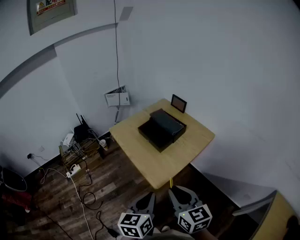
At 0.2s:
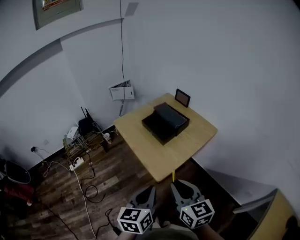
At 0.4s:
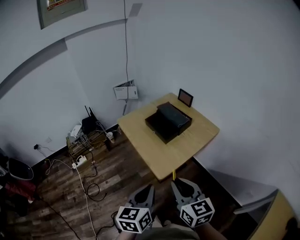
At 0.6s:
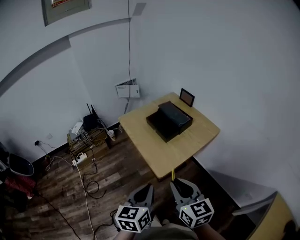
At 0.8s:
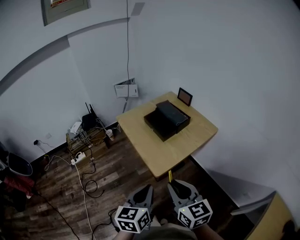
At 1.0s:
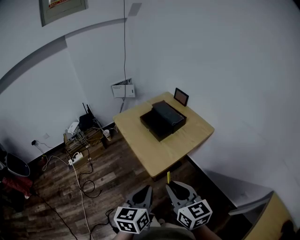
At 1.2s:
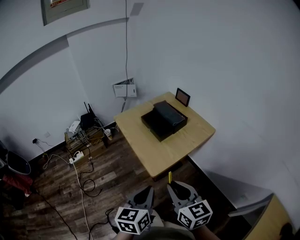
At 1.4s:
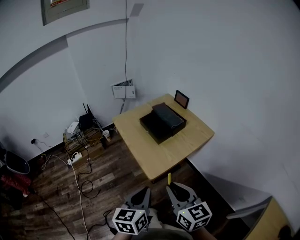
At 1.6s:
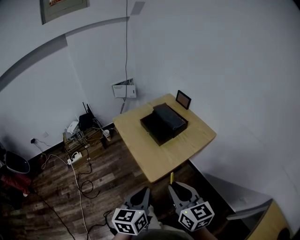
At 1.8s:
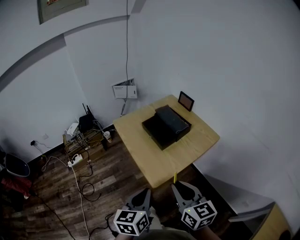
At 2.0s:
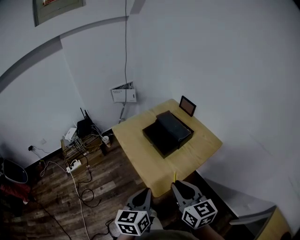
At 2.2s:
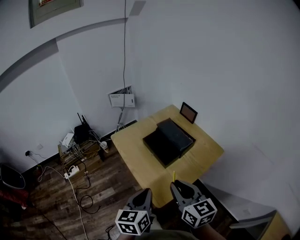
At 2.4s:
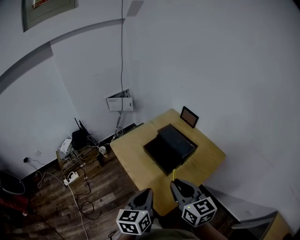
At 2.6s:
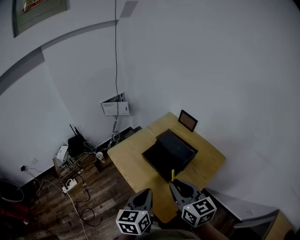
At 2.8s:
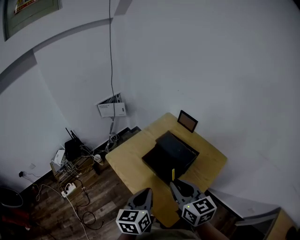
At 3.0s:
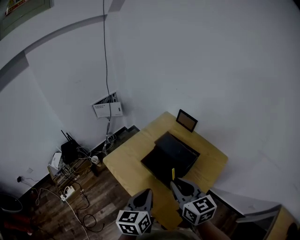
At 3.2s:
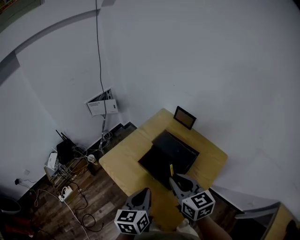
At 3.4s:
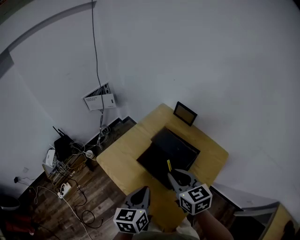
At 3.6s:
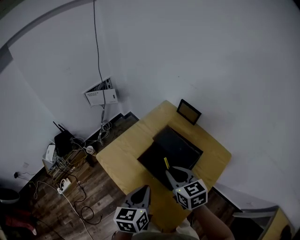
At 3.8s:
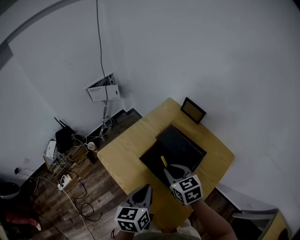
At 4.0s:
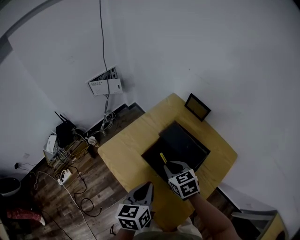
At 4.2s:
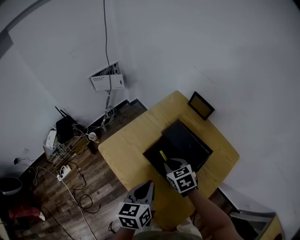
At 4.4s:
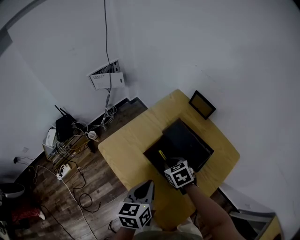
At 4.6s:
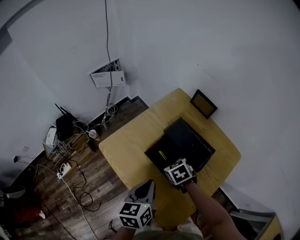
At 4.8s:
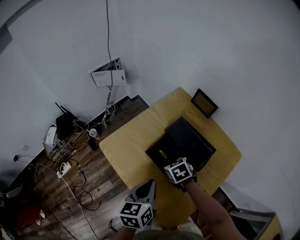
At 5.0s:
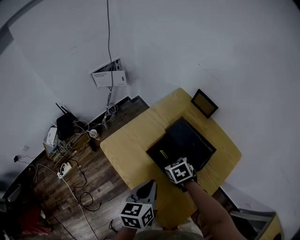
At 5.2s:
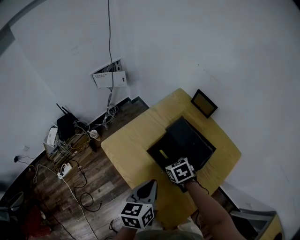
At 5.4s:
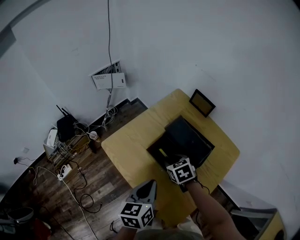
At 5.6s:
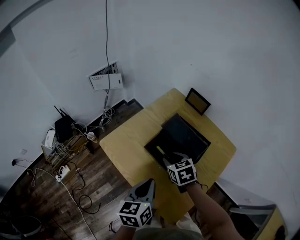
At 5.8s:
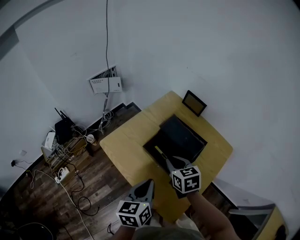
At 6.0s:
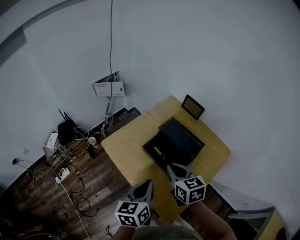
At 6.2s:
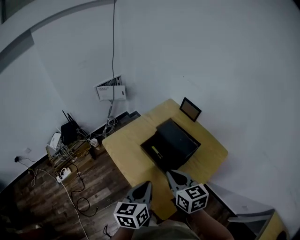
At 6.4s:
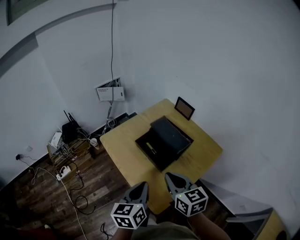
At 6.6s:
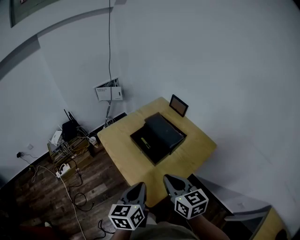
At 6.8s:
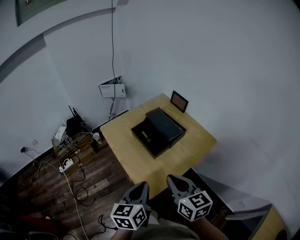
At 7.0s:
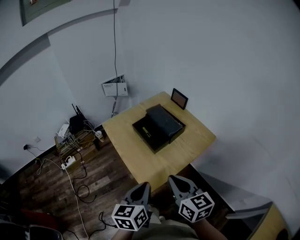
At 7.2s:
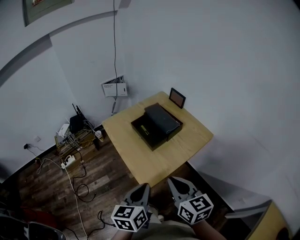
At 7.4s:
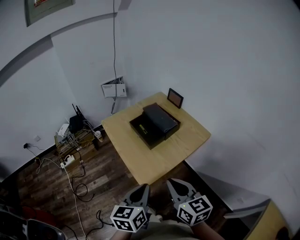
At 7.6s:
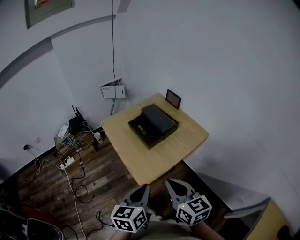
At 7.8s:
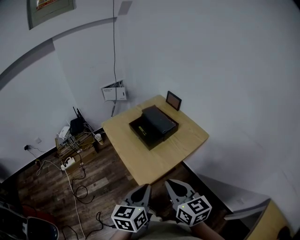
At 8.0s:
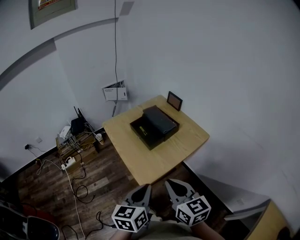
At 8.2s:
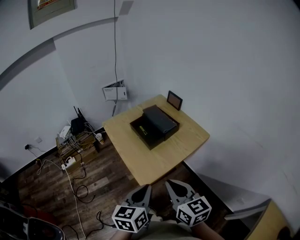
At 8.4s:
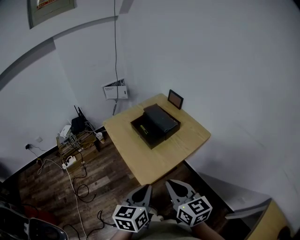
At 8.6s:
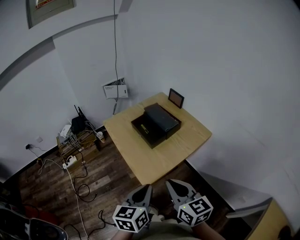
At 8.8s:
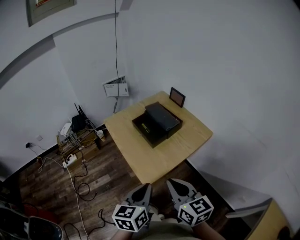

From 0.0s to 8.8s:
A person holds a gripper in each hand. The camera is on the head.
From 0.0s to 1.4s: There are only small adjustments of the grippers.
From 1.4s to 3.0s: Both grippers travel together forward, approximately 35 cm.
From 3.0s to 4.4s: The right gripper heads downward and forward, covering about 25 cm, and tilts its fingers approximately 40 degrees downward; the left gripper heads downward and forward, covering some 10 cm.
From 4.4s to 5.8s: The right gripper goes some 10 cm upward, swivels about 20 degrees, and opens, then closes once more, while the left gripper changes place by approximately 5 cm.
From 5.8s to 7.4s: The grippers both shift backward by roughly 30 cm. The right gripper rotates some 30 degrees.
From 7.4s to 8.8s: There are only small adjustments of the grippers.

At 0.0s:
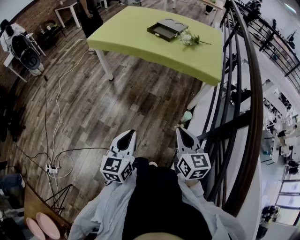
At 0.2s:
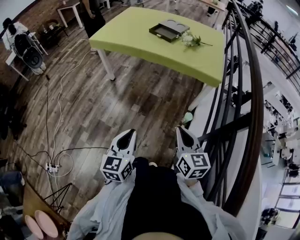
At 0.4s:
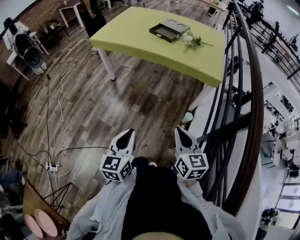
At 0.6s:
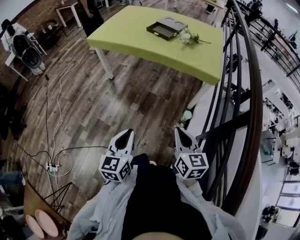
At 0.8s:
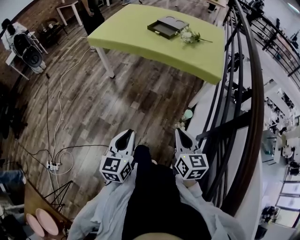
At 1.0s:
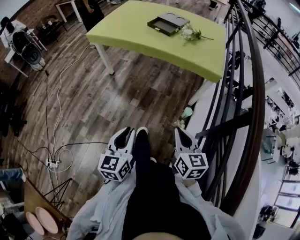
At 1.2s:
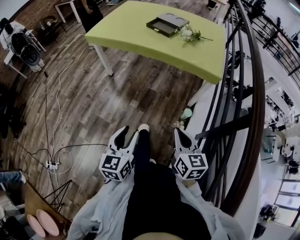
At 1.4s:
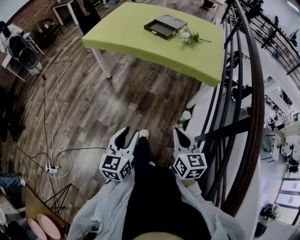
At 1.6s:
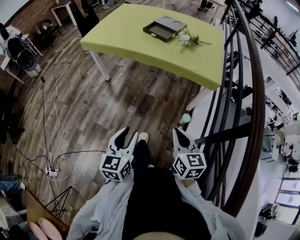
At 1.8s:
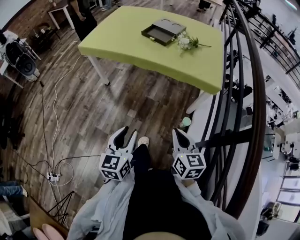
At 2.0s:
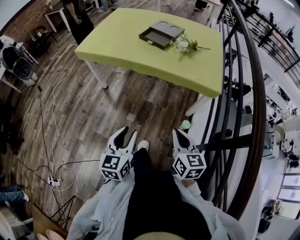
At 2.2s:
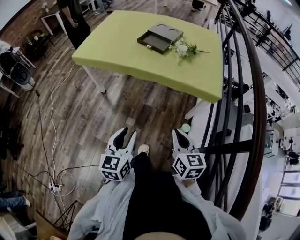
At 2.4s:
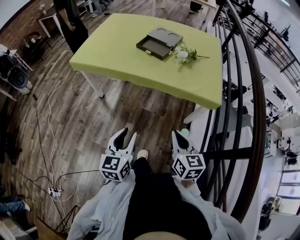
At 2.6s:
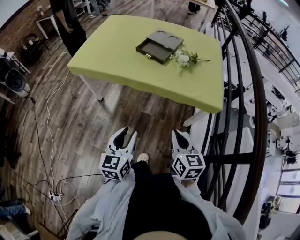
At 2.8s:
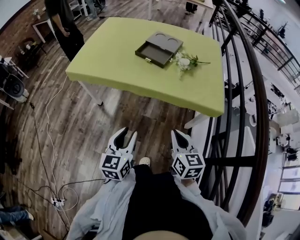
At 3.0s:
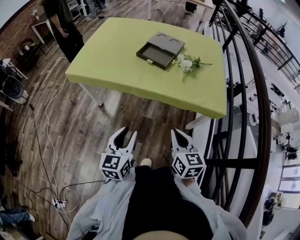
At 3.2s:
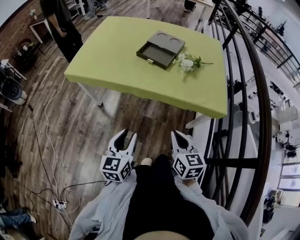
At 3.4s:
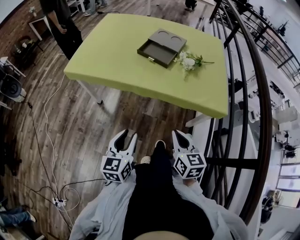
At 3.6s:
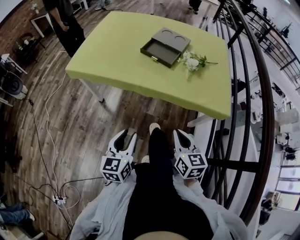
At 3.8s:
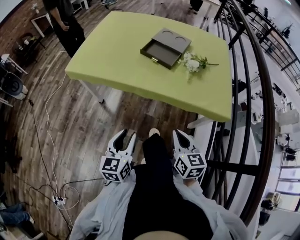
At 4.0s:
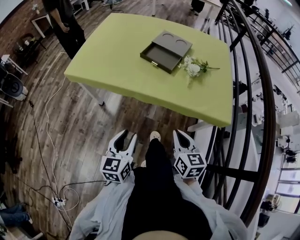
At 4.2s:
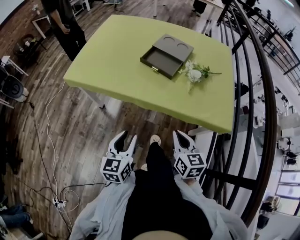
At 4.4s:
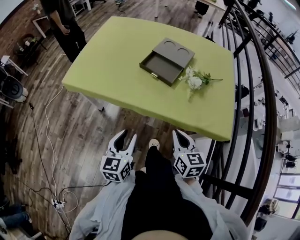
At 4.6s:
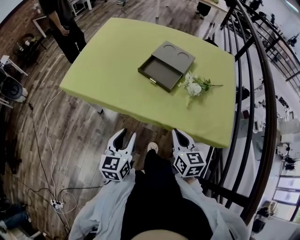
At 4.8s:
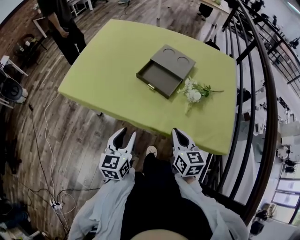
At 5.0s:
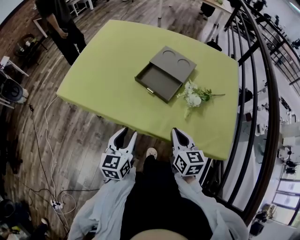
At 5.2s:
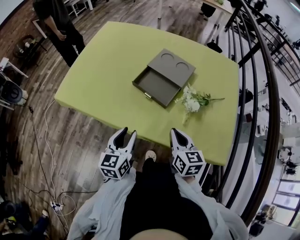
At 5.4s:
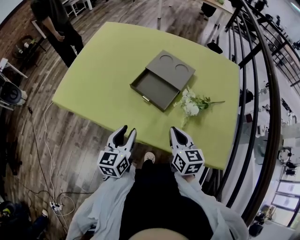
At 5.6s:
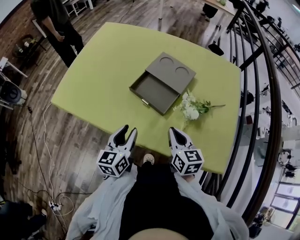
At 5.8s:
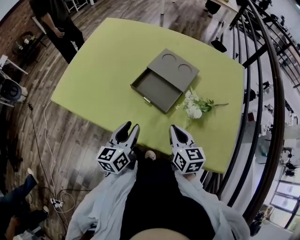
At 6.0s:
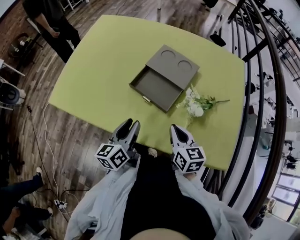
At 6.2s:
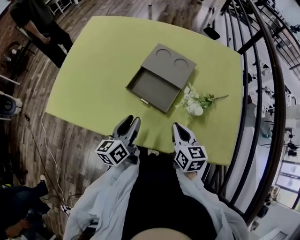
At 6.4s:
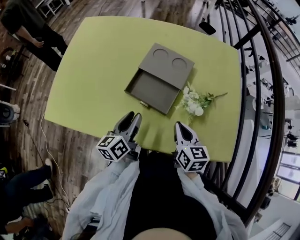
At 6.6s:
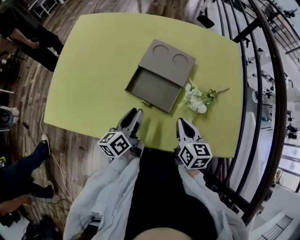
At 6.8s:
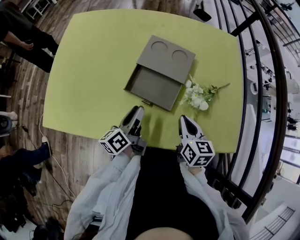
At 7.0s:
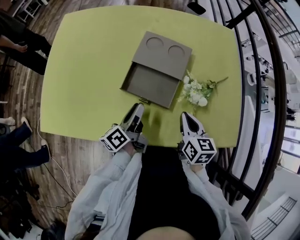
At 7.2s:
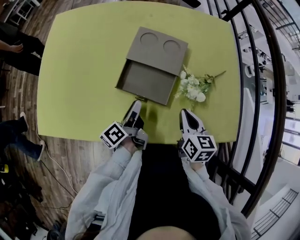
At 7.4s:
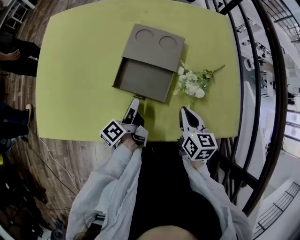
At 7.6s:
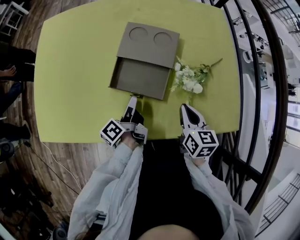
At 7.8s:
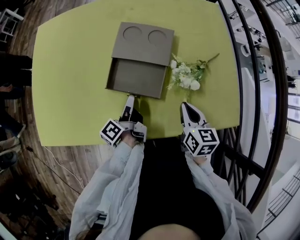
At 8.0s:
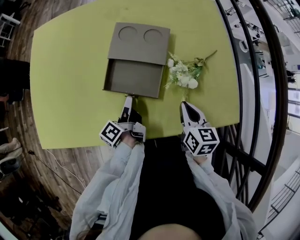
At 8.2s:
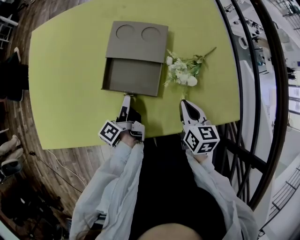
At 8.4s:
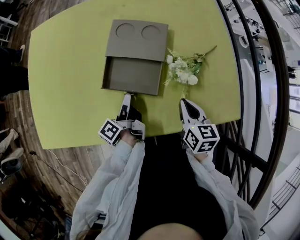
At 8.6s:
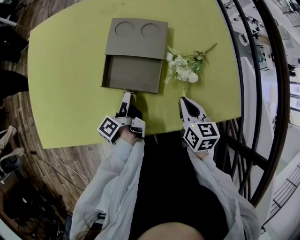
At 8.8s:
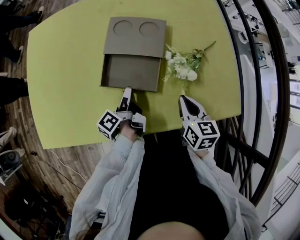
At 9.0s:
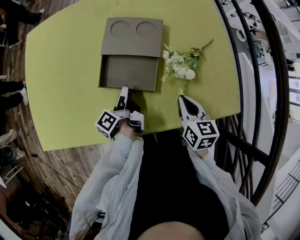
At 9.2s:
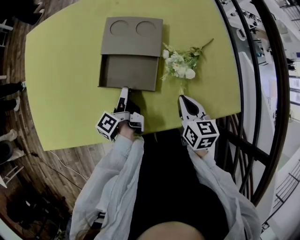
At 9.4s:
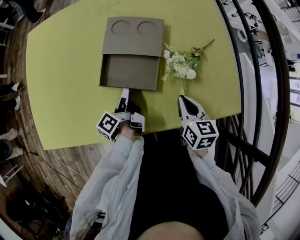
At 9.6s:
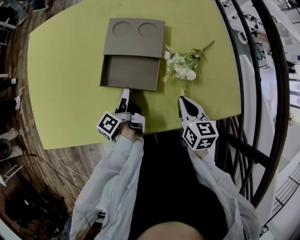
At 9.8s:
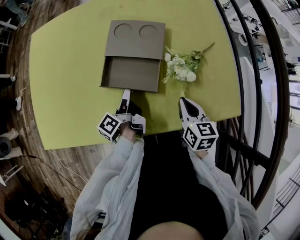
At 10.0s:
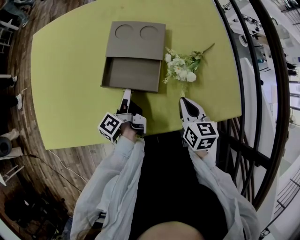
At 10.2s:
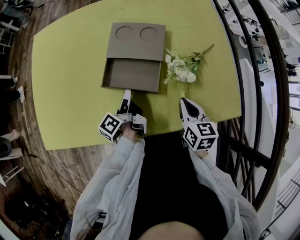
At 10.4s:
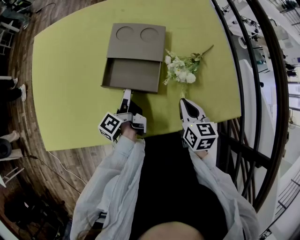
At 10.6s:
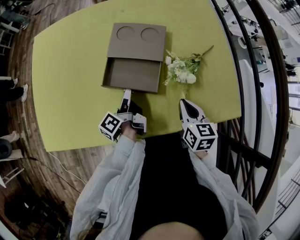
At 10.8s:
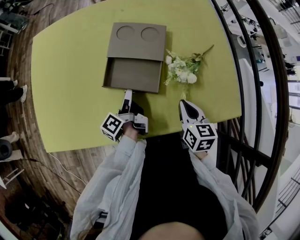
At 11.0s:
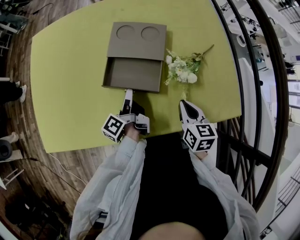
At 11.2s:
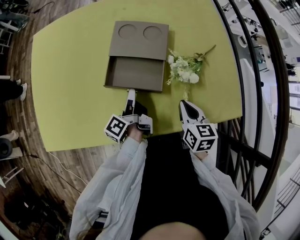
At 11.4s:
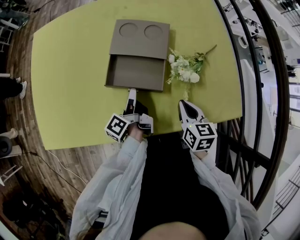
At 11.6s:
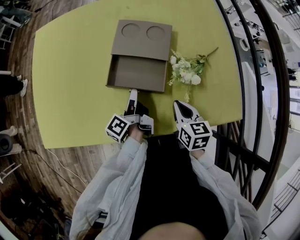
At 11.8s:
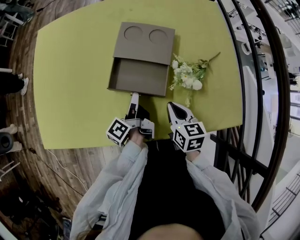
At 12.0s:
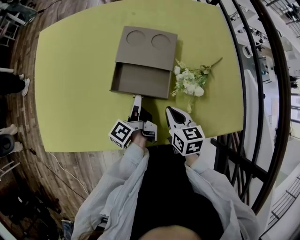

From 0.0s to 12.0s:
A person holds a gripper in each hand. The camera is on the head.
From 0.0s to 1.6s: Both grippers move forward, roughly 5 cm. The left gripper opens.
From 1.6s to 3.0s: The grippers both shift forward by approximately 25 cm.
From 3.0s to 4.4s: Both grippers travel together forward, about 15 cm.
From 4.4s to 6.0s: The grippers both shift forward by roughly 20 cm. The left gripper rotates roughly 20 degrees.
From 6.0s to 7.6s: The right gripper shifts by roughly 5 cm, and rotates roughly 30 degrees; the left gripper heads forward and downward, covering some 15 cm, and rolls counterclockwise, seen from behind, by roughly 50 degrees.
From 7.6s to 10.4s: There are only small adjustments of the grippers.
From 10.4s to 12.0s: The right gripper is displaced to the left by some 5 cm.

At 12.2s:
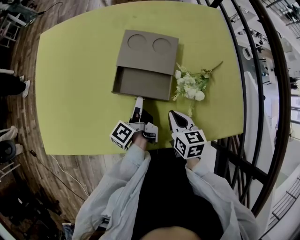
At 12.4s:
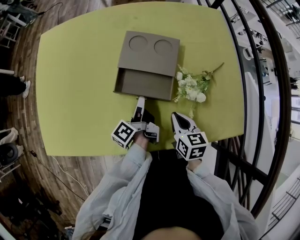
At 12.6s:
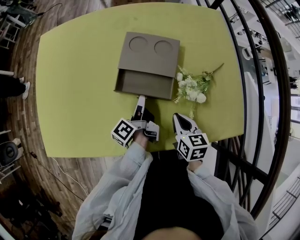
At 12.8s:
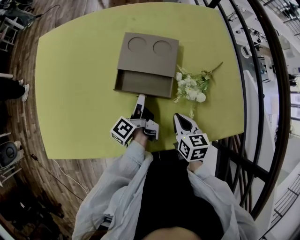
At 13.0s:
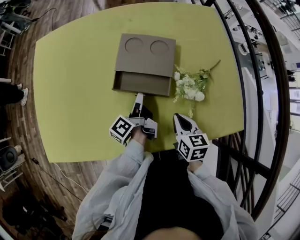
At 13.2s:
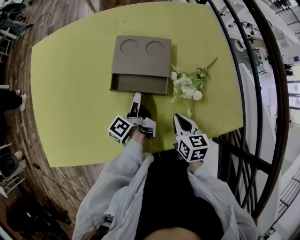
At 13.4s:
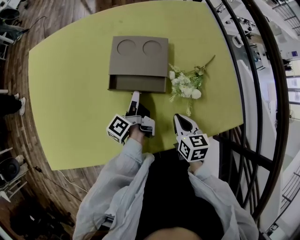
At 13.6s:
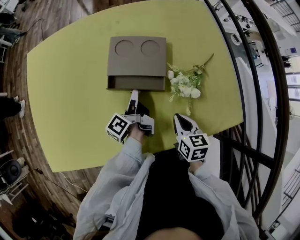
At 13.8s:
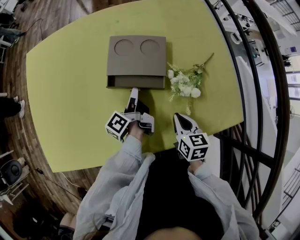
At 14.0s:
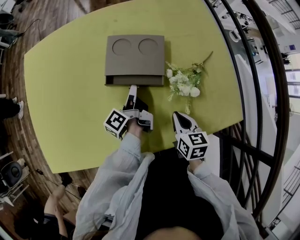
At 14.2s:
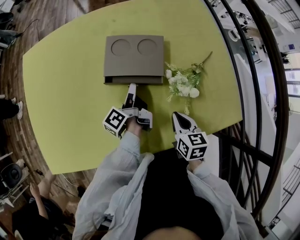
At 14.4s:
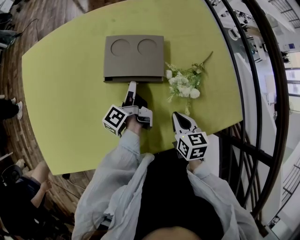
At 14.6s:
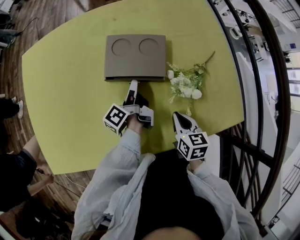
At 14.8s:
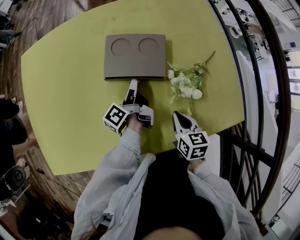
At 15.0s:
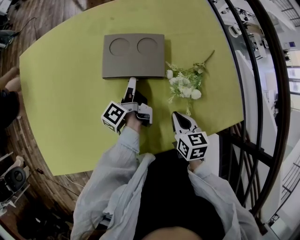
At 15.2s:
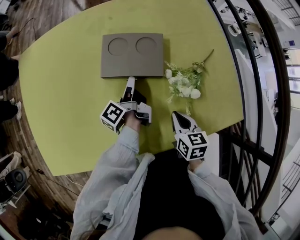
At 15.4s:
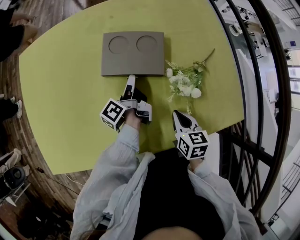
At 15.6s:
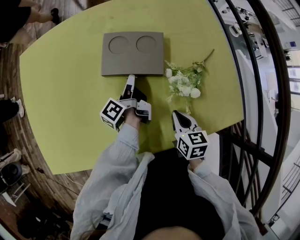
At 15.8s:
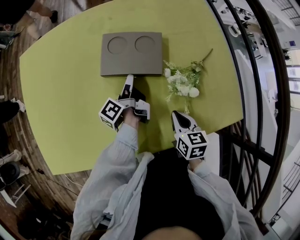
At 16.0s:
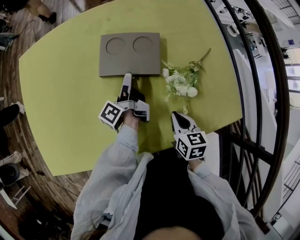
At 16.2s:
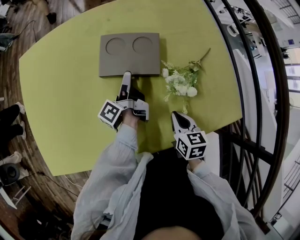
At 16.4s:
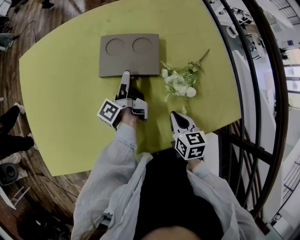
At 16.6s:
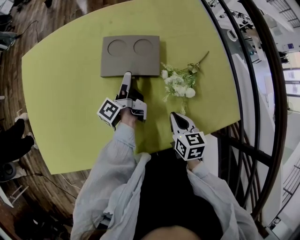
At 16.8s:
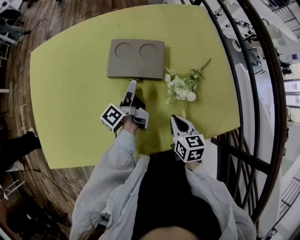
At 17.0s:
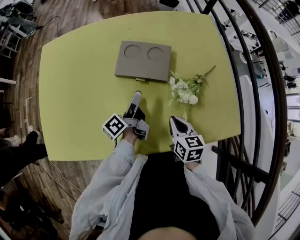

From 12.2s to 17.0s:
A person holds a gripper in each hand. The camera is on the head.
From 12.2s to 13.8s: The left gripper moves forward, some 5 cm.
From 13.8s to 15.4s: The left gripper heads forward, covering some 5 cm.
From 15.4s to 17.0s: The left gripper is displaced backward and upward by some 10 cm, and opens up.
